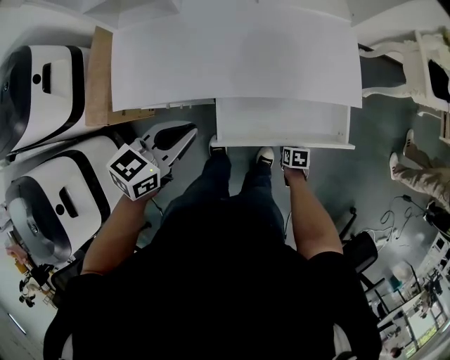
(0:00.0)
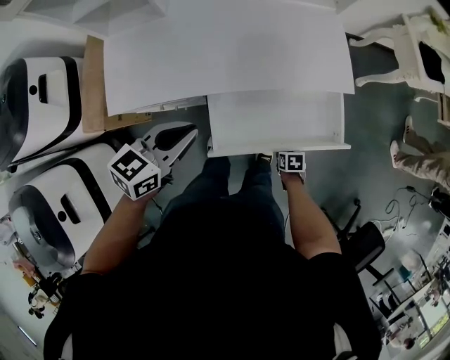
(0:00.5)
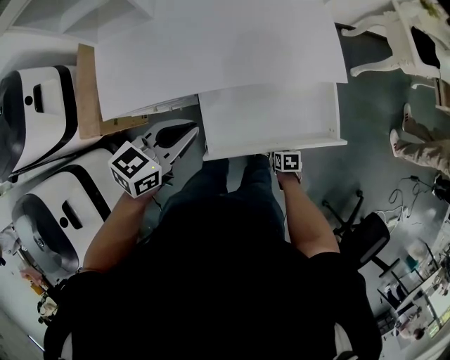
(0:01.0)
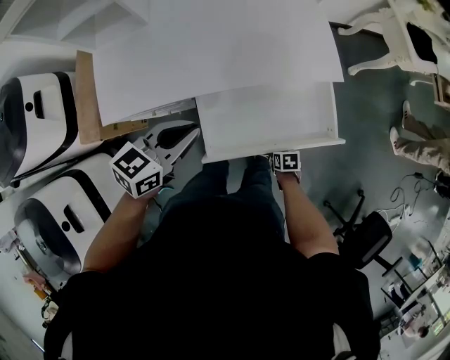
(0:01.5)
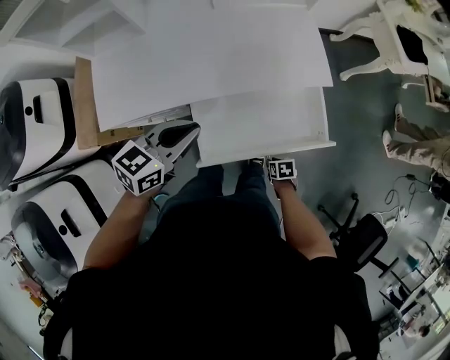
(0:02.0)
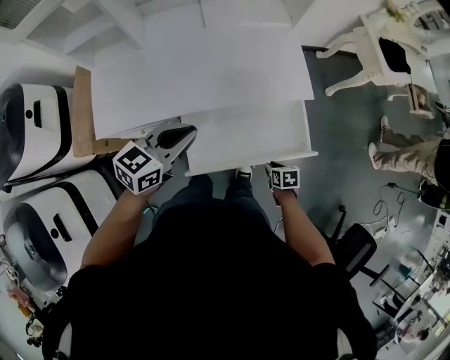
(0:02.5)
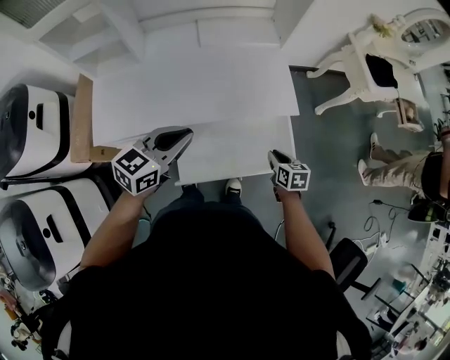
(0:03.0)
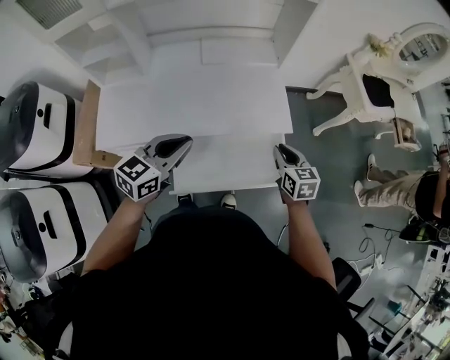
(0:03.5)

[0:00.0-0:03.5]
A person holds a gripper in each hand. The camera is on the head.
0:00.0 to 0:02.0: The left gripper moves about 10 cm; the right gripper ends up some 10 cm from where it was.
0:02.0 to 0:03.5: The right gripper travels upward and forward by approximately 40 cm, and angles its fingers upward, by about 40 degrees. The left gripper heads upward and to the right, covering roughly 10 cm.

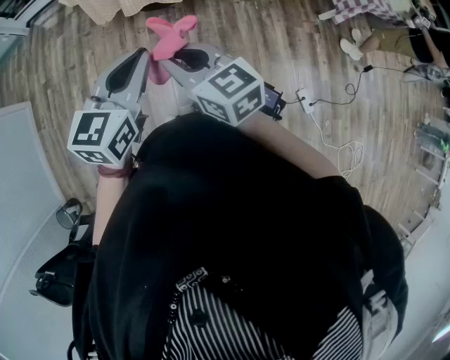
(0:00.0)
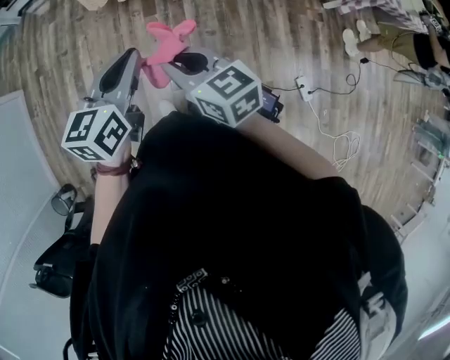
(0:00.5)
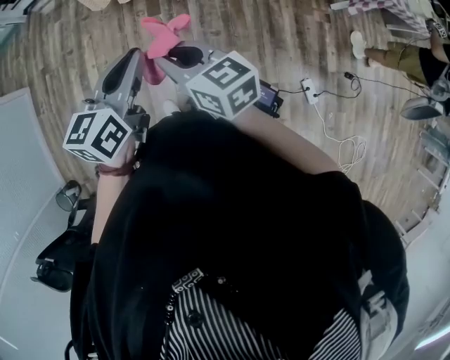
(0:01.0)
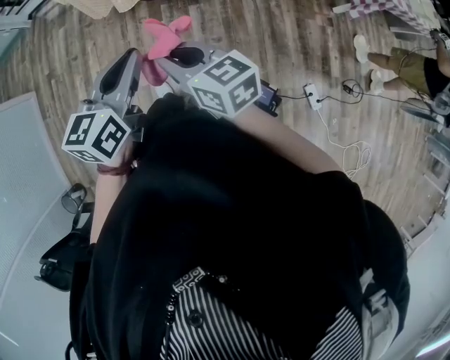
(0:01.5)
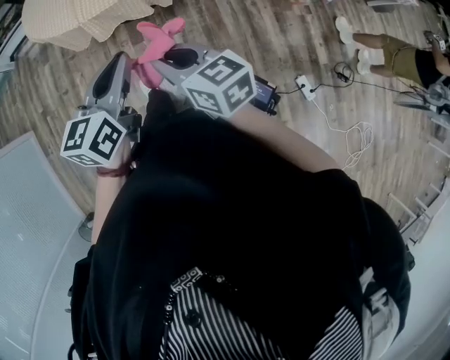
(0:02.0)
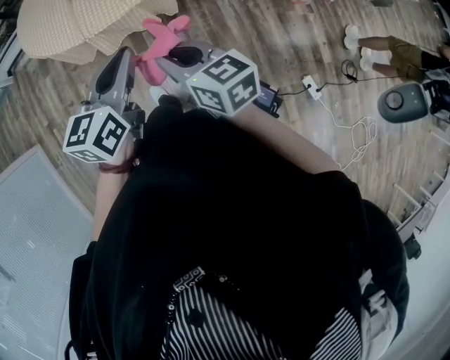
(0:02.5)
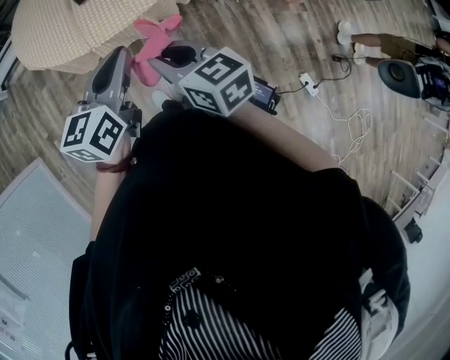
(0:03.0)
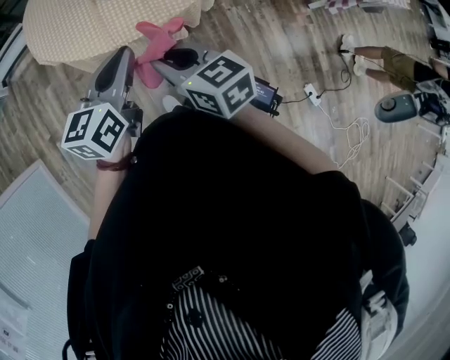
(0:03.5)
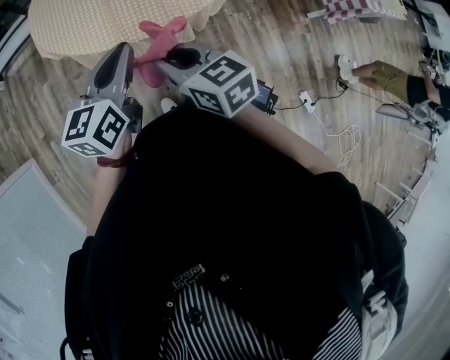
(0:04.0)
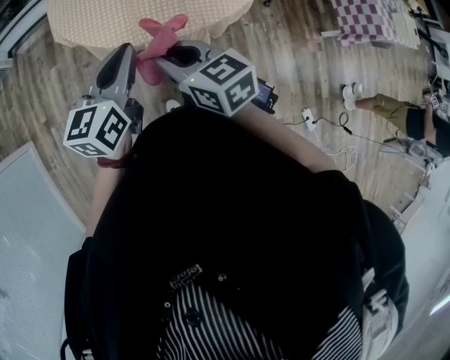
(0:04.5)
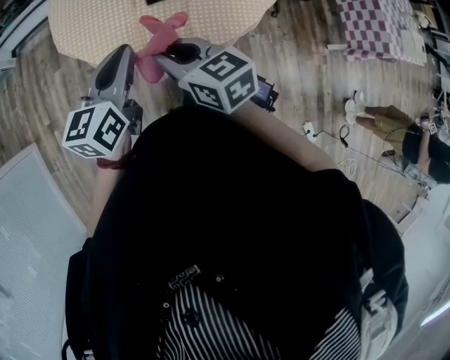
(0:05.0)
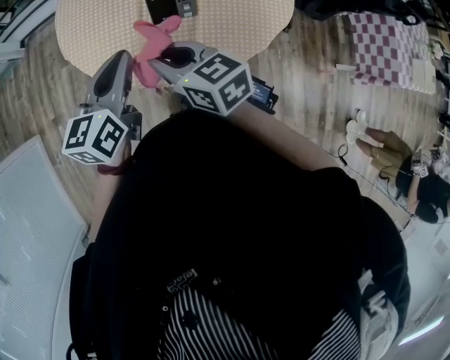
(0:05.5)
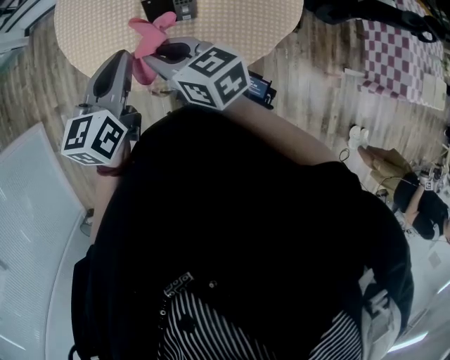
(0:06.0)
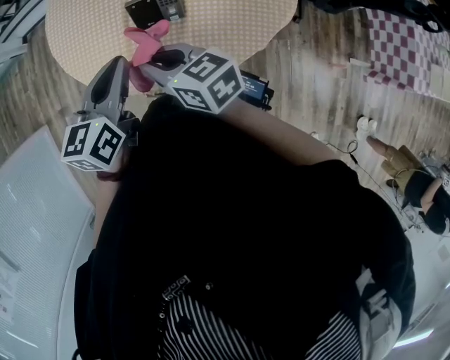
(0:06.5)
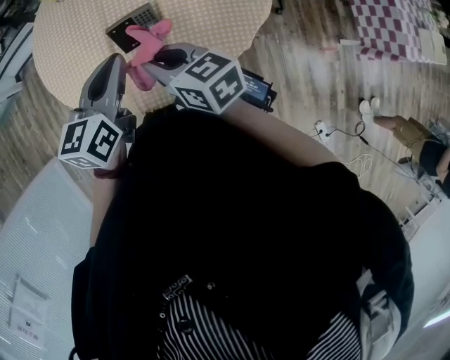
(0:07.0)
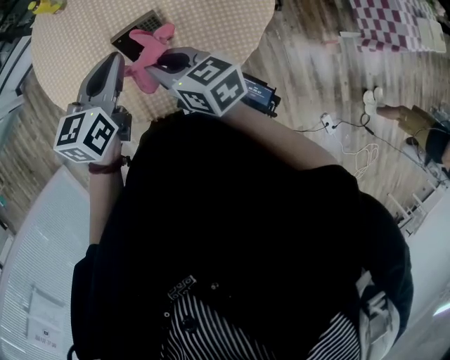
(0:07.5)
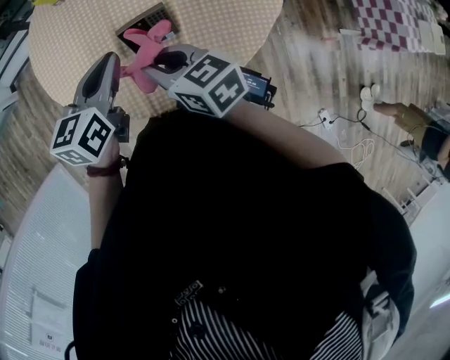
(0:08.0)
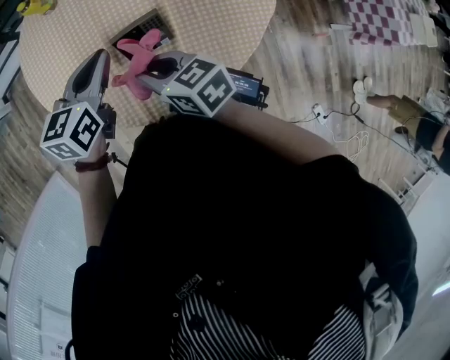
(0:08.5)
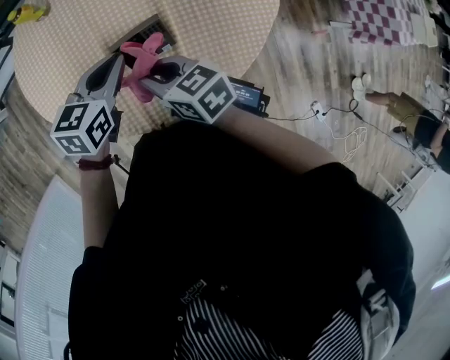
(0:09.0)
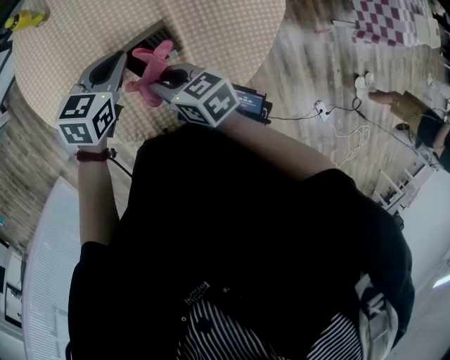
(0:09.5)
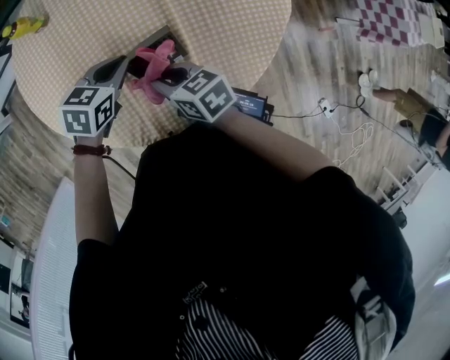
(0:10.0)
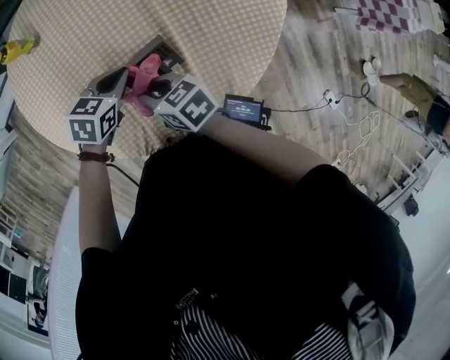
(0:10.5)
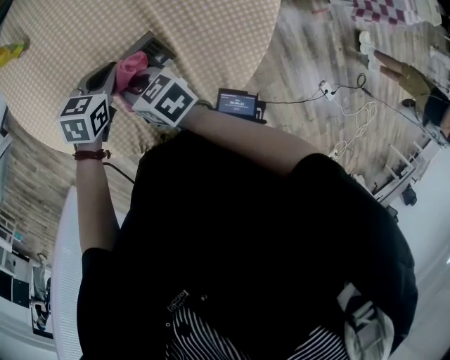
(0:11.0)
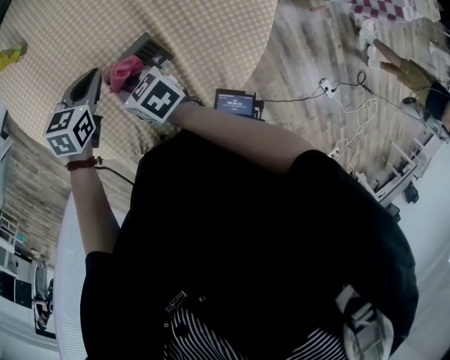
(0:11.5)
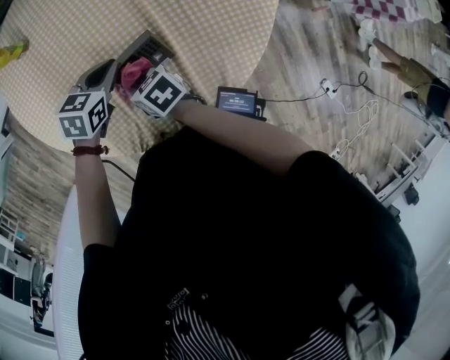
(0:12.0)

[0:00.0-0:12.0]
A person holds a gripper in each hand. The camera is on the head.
0:00.0 to 0:02.0: The right gripper moves to the right and forward, about 15 cm. The left gripper shifts about 15 cm forward and to the right.
0:02.0 to 0:04.0: Both grippers travel together forward and to the left, roughly 40 cm.
0:04.0 to 0:06.0: Both grippers move forward, roughly 35 cm. The right gripper turns by some 20 degrees.
0:06.0 to 0:08.0: Both grippers travel together forward and to the right, about 10 cm.
0:08.0 to 0:10.0: The grippers both shift downward and forward by about 20 cm. The left gripper rotates roughly 40 degrees.
0:10.0 to 0:12.0: The left gripper ends up roughly 5 cm from where it was. Meanwhile the right gripper is displaced downward by approximately 10 cm.

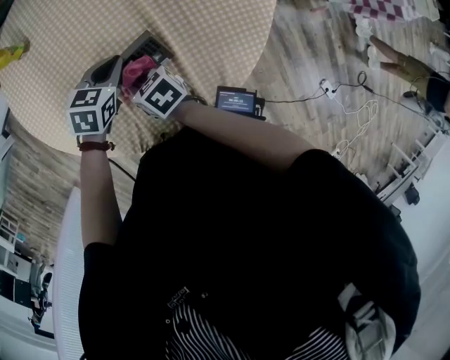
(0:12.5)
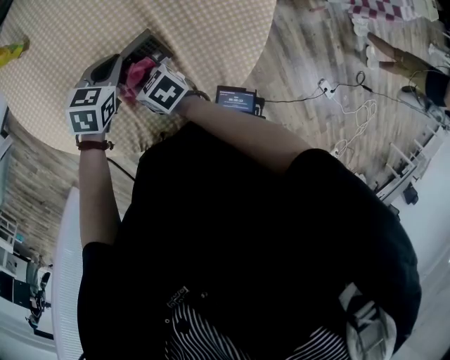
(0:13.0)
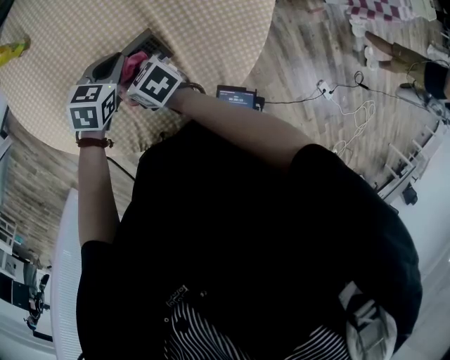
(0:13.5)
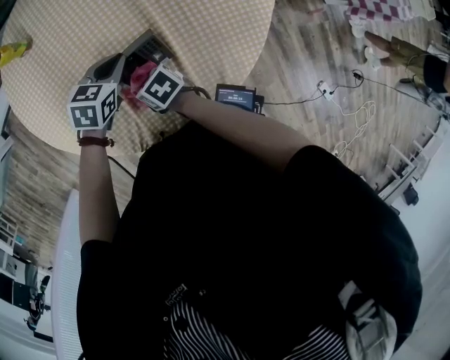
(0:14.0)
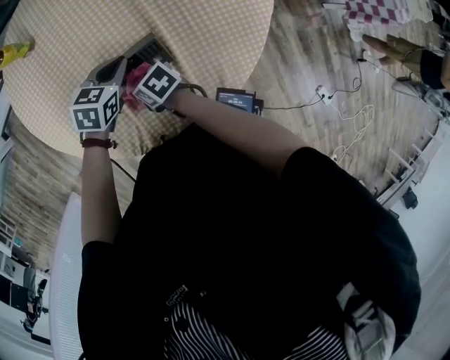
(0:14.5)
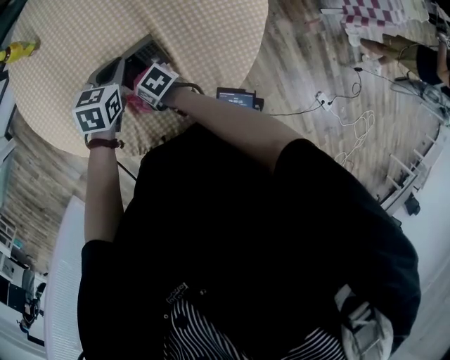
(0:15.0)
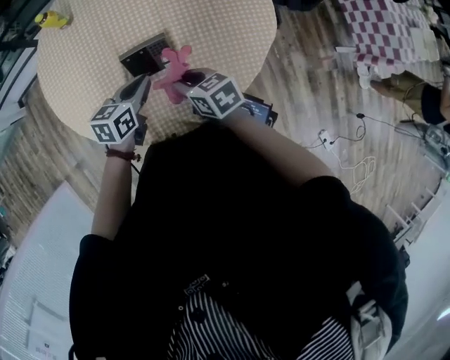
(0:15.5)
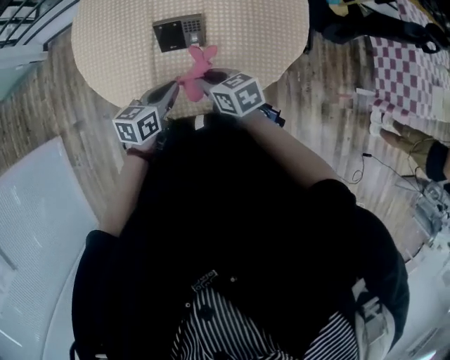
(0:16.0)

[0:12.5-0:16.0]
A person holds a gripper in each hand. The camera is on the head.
0:14.5 to 0:16.0: The right gripper changes place by some 25 cm, and rotates about 20 degrees. The left gripper moves approximately 30 cm, and swivels roughly 40 degrees.

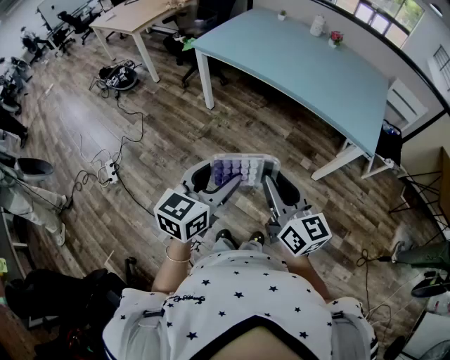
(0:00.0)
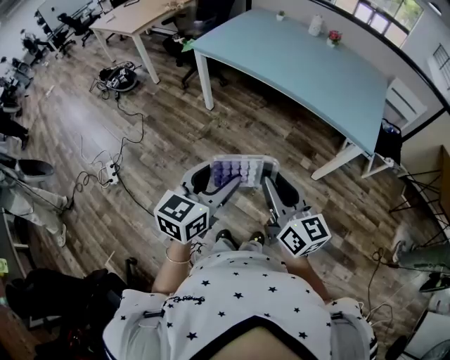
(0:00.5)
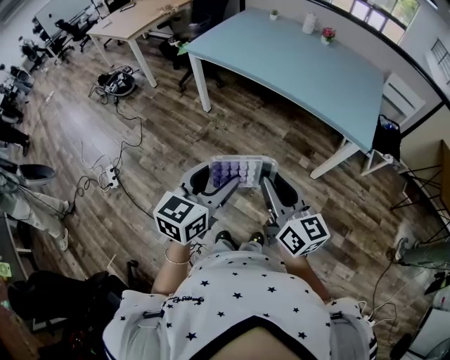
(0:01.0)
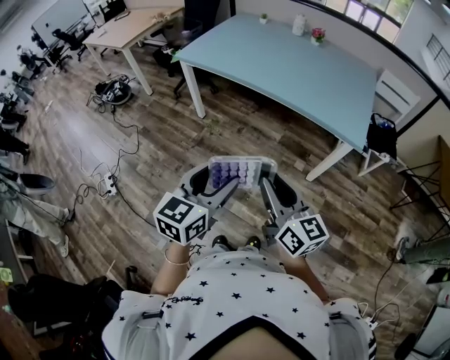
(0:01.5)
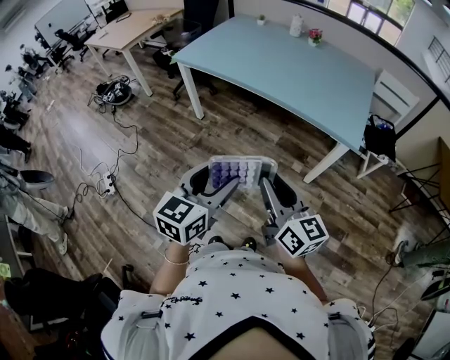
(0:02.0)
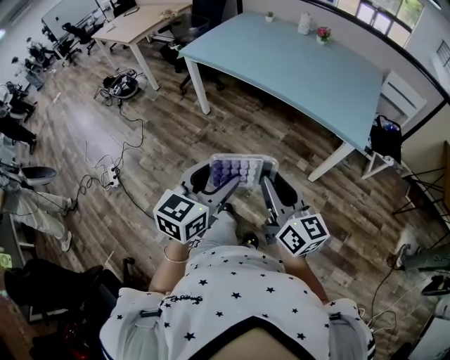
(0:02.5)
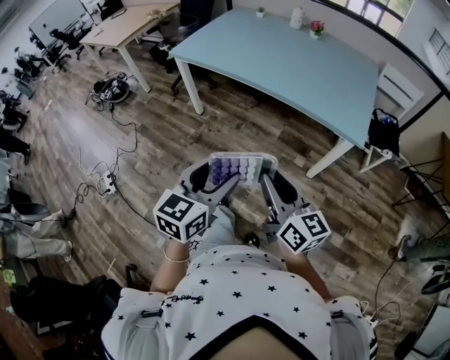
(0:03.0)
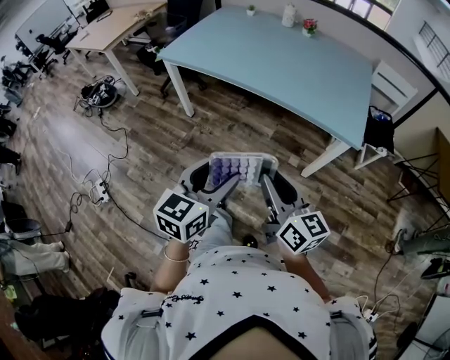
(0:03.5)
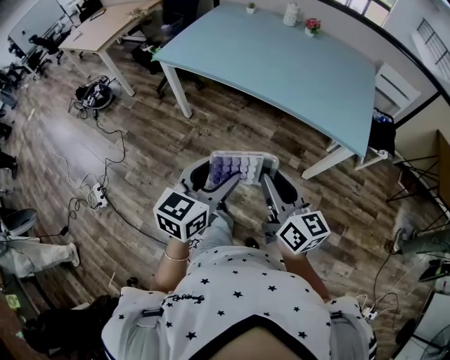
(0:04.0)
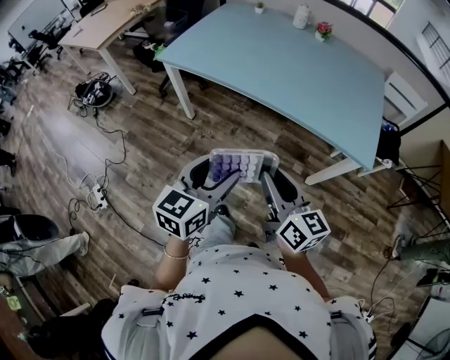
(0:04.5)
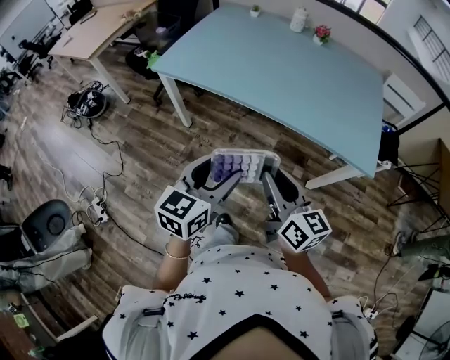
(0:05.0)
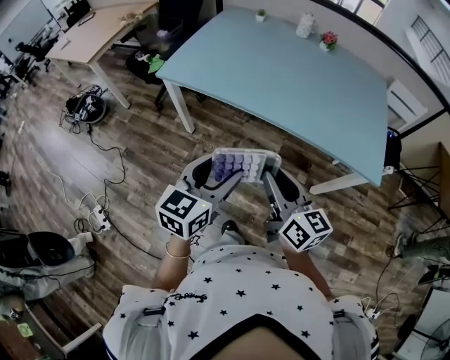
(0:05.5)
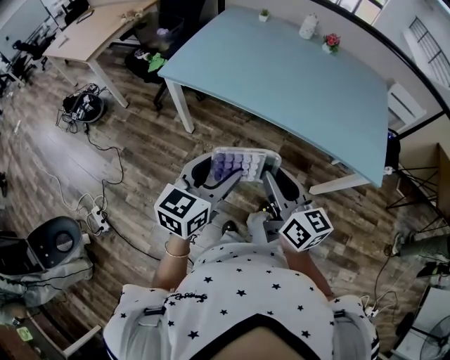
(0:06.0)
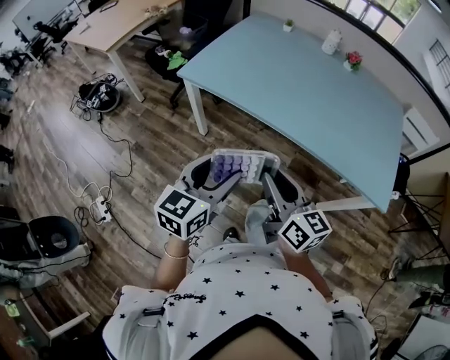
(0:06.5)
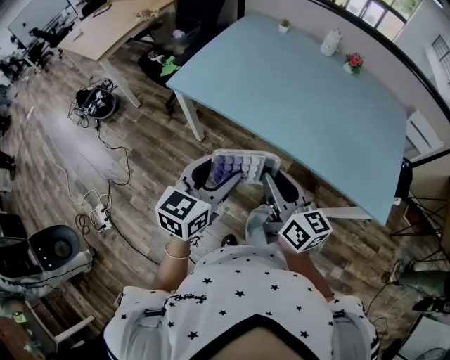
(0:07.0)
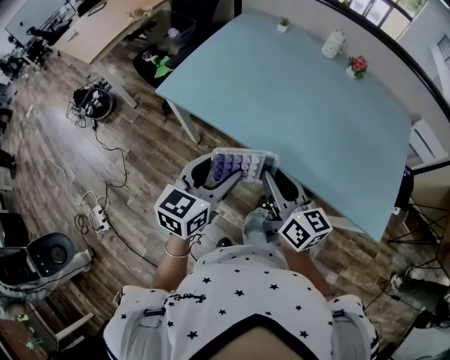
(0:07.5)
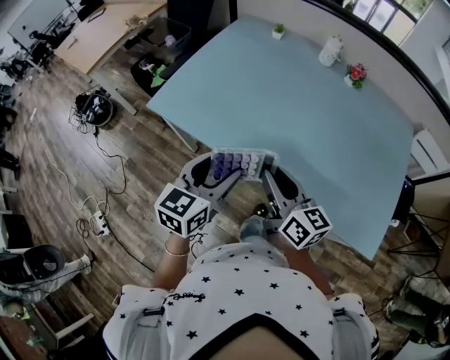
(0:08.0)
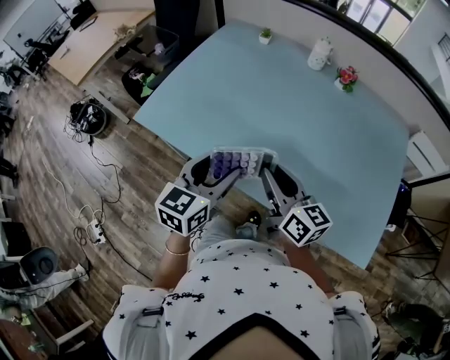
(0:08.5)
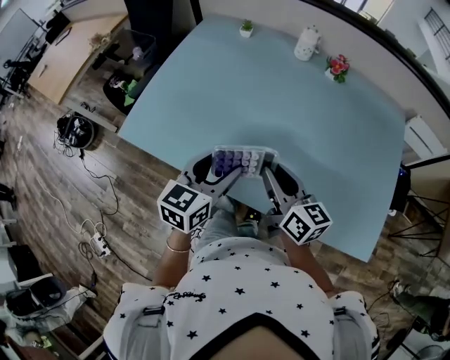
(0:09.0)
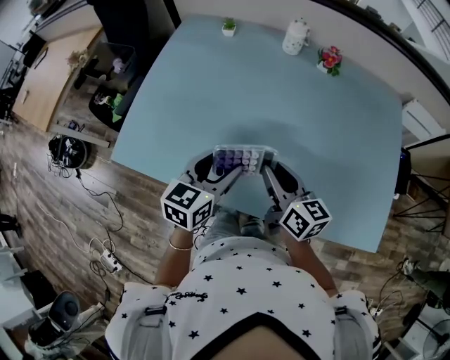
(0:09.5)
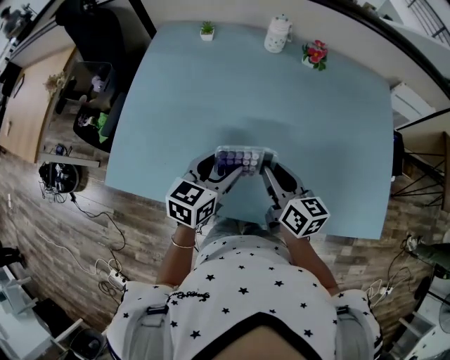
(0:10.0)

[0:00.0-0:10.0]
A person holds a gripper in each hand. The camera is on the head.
0:00.0 to 0:02.0: Both grippers move to the right, approximately 10 cm.
0:02.0 to 0:04.0: Both grippers travel together forward, roughly 10 cm.
0:04.0 to 0:06.0: The grippers both shift forward and to the left by about 20 cm.
0:06.0 to 0:08.0: Both grippers travel together forward, approximately 25 cm.
0:08.0 to 0:10.0: The right gripper moves forward and downward, roughly 20 cm, and rotates approximately 20 degrees; the left gripper travels forward by about 20 cm, and swivels approximately 20 degrees.
